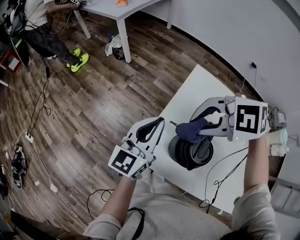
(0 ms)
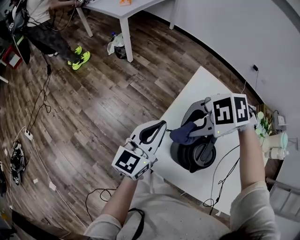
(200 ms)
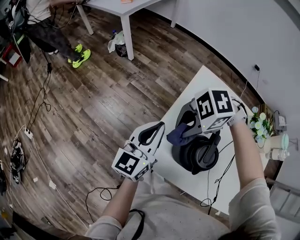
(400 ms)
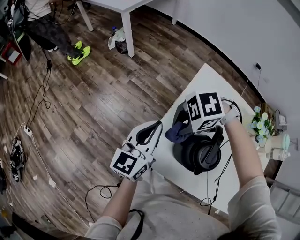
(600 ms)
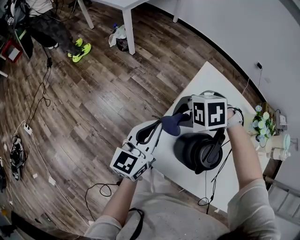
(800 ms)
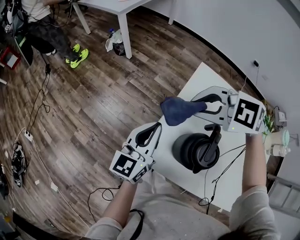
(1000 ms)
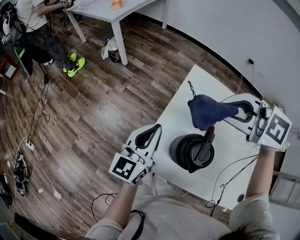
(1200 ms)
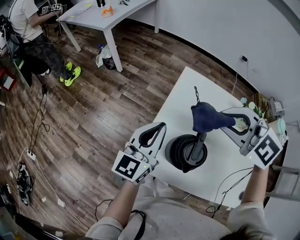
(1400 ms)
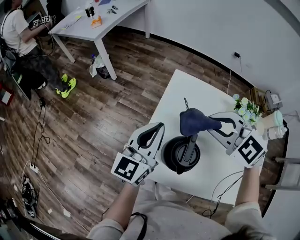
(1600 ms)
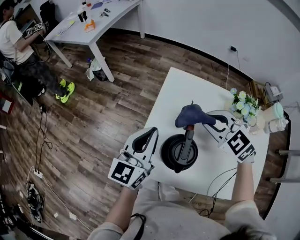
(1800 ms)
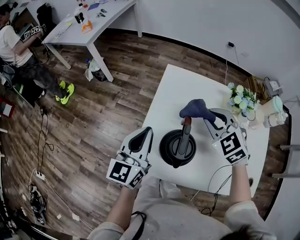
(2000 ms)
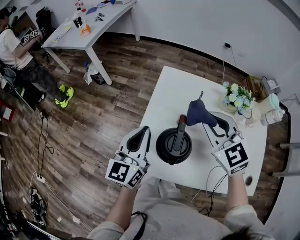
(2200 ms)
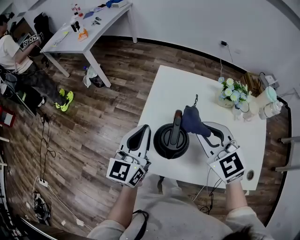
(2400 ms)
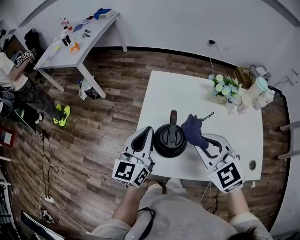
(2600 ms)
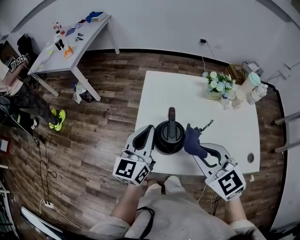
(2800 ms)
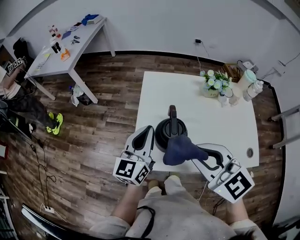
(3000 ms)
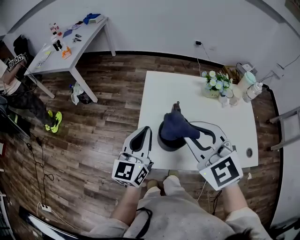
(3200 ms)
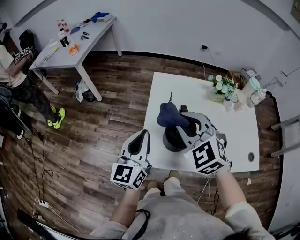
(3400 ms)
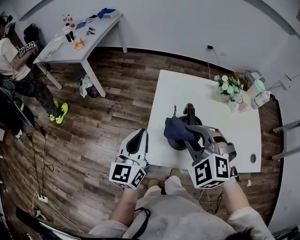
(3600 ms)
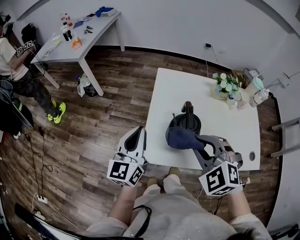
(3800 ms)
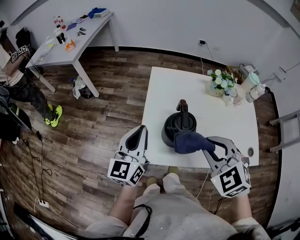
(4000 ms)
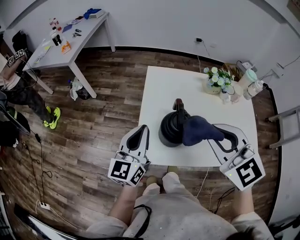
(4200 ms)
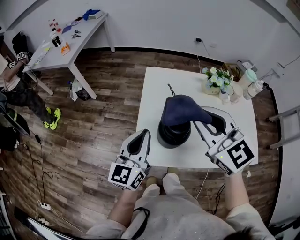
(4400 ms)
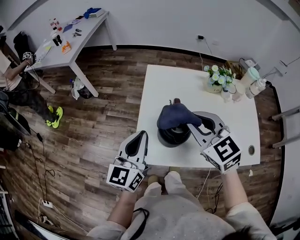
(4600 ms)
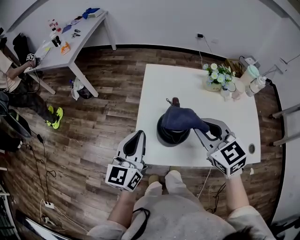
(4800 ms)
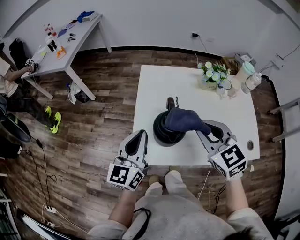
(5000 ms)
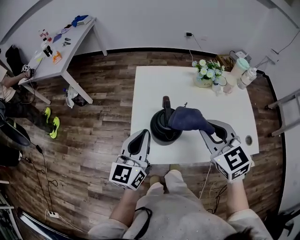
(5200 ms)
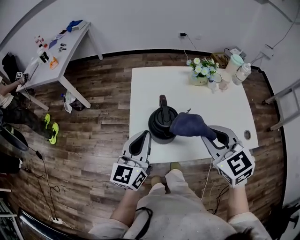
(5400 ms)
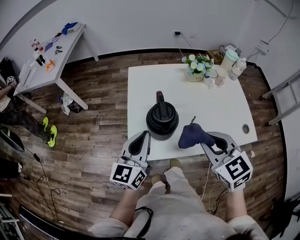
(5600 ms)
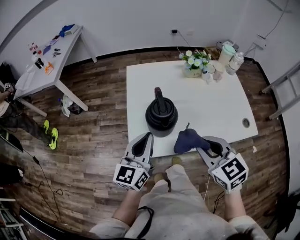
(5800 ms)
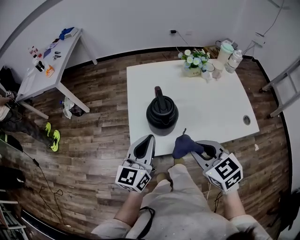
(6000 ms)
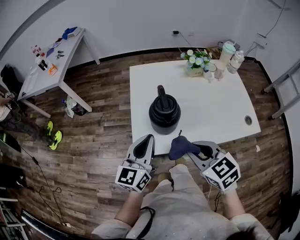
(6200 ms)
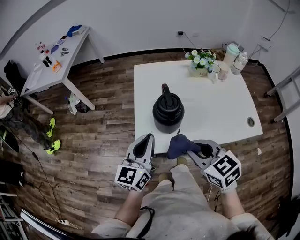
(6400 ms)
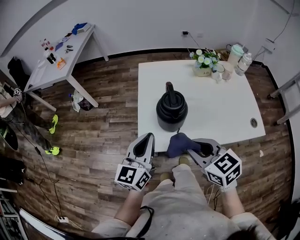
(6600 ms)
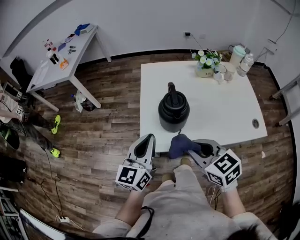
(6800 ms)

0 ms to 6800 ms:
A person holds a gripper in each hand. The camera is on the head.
0 ms to 1400 ms: The right gripper travels downward and back again, some 15 cm each way, and turns by approximately 40 degrees.
1400 ms to 2800 ms: The left gripper changes place by some 5 cm. Meanwhile the right gripper goes about 15 cm backward, and changes its angle by roughly 40 degrees.
2800 ms to 4000 ms: The left gripper goes approximately 10 cm to the left; the right gripper travels forward and back again, approximately 10 cm each way, and turns by approximately 20 degrees.
4000 ms to 5400 ms: The grippers both shift to the right by approximately 5 cm. The right gripper reaches some 10 cm upward, then returns, and rotates some 30 degrees.
5400 ms to 6800 ms: The left gripper travels backward by some 5 cm. The right gripper travels backward, to the left and downward by roughly 15 cm.

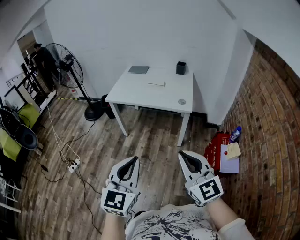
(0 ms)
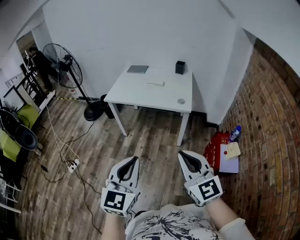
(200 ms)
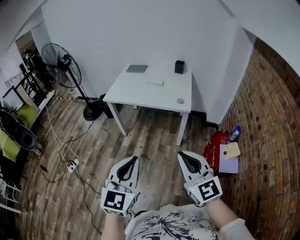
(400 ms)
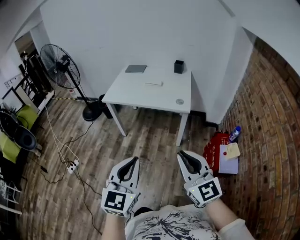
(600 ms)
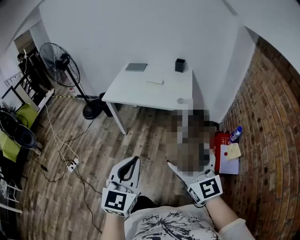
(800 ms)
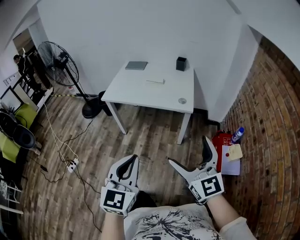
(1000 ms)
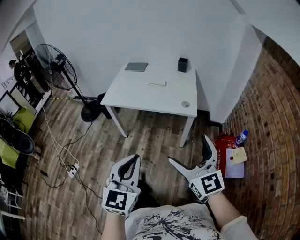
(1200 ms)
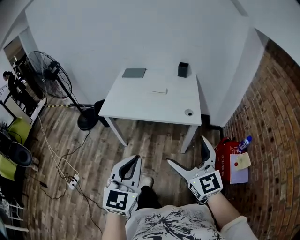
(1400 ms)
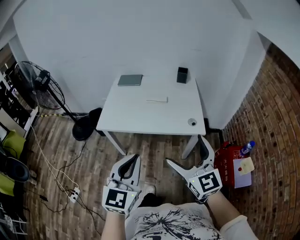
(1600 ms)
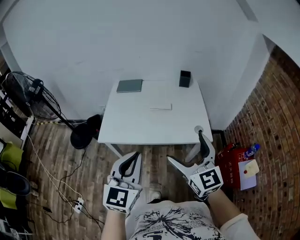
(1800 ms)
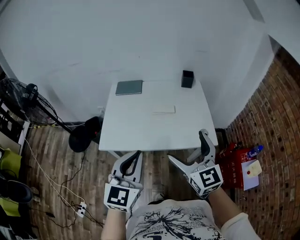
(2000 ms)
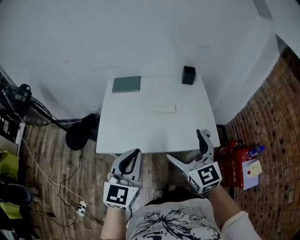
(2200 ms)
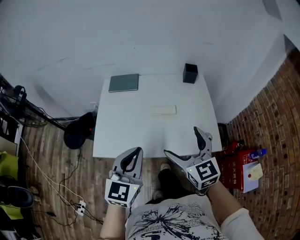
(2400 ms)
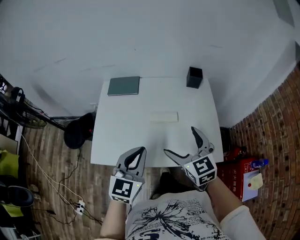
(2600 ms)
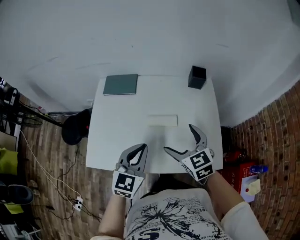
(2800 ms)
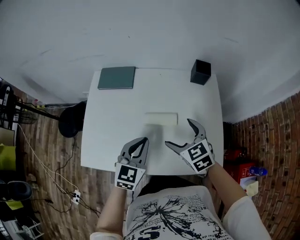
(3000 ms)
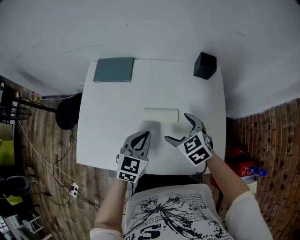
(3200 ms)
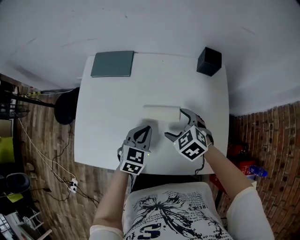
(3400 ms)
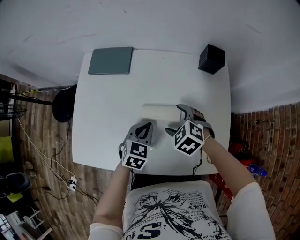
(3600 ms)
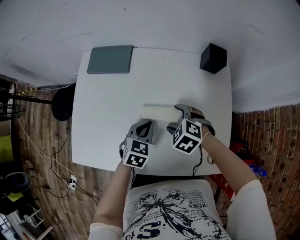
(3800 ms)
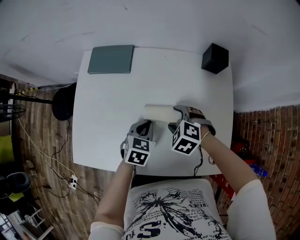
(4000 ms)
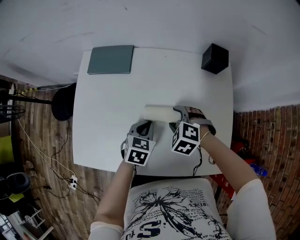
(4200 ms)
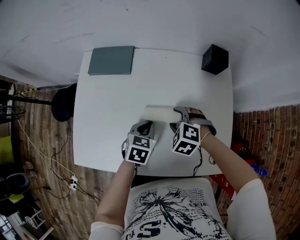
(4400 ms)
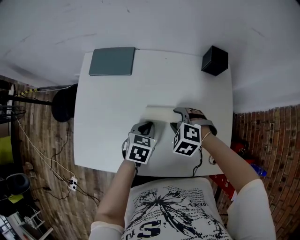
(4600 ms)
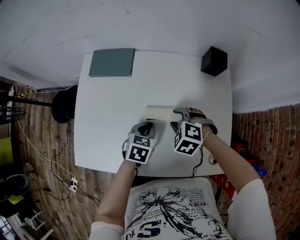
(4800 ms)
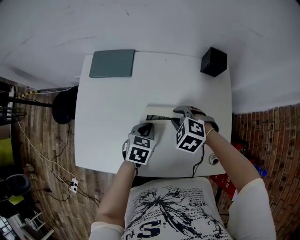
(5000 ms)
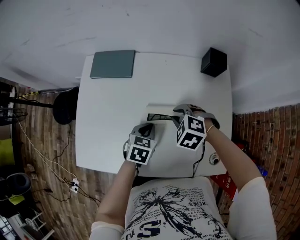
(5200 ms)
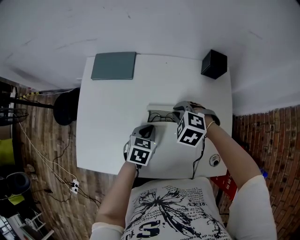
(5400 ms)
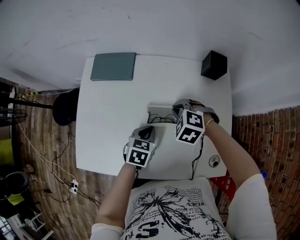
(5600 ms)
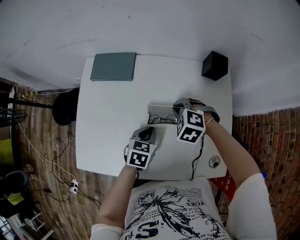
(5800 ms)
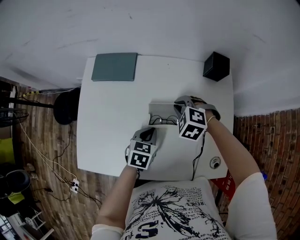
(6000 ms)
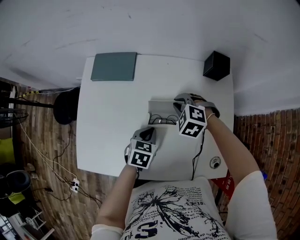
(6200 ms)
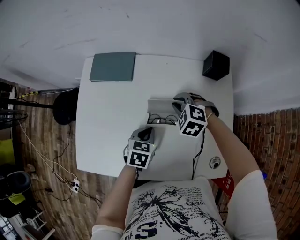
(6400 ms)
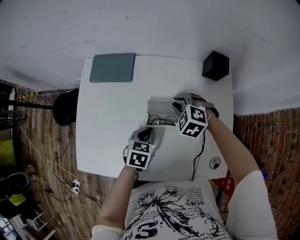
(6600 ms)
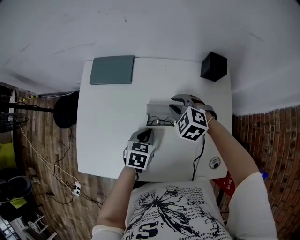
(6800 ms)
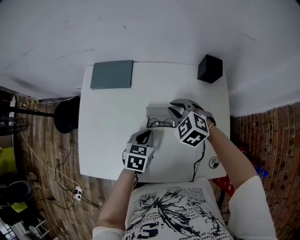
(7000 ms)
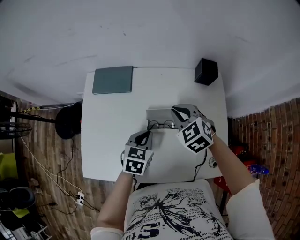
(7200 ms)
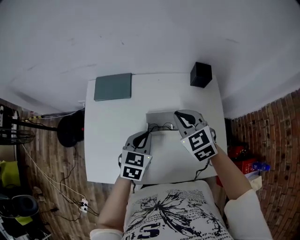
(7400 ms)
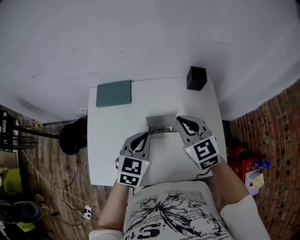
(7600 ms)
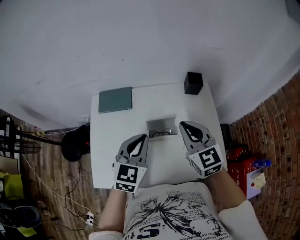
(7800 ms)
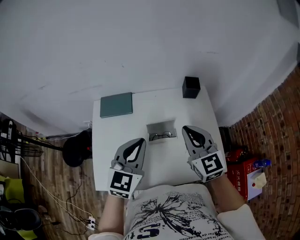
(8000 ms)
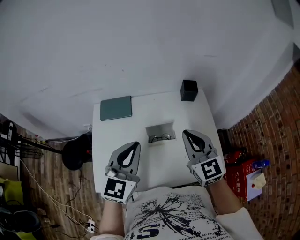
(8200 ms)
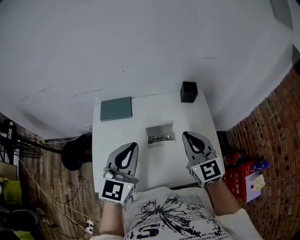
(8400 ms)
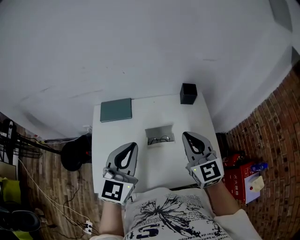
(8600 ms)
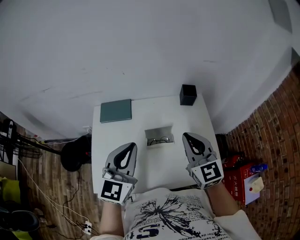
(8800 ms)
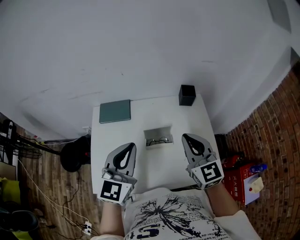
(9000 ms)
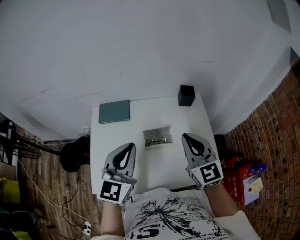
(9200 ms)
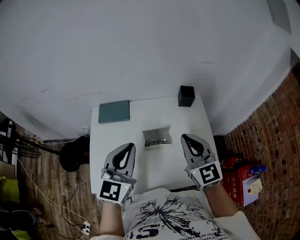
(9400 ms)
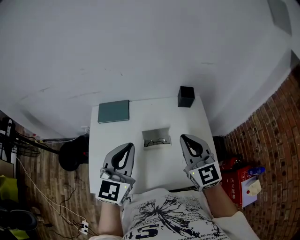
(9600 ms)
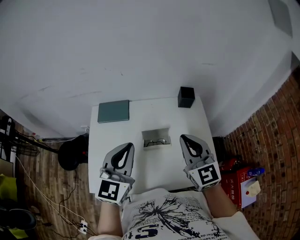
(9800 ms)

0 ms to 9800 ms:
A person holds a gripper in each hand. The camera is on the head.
0 ms to 1400 ms: Both grippers travel together forward, roughly 25 cm. The right gripper opens its fingers.
1400 ms to 2800 ms: Both grippers are carried forward, roughly 50 cm. The right gripper rotates about 30 degrees.
2800 ms to 4200 ms: Both grippers travel together downward and forward, some 25 cm. The left gripper turns by some 30 degrees. The right gripper tilts its fingers about 40 degrees downward, and closes its fingers.
4200 ms to 5600 ms: The right gripper is displaced forward by some 5 cm, and closes.
5600 ms to 7000 ms: The right gripper ends up about 5 cm from where it was.
7000 ms to 8400 ms: The right gripper is displaced upward and backward by about 25 cm, and points its fingers some 40 degrees further upward, while the left gripper heads upward, covering about 30 cm, and tilts its fingers about 40 degrees upward.
8400 ms to 9800 ms: The grippers move only a little.

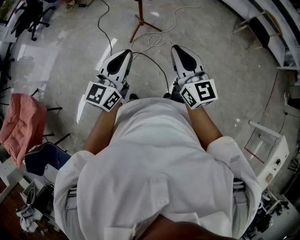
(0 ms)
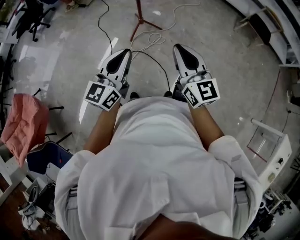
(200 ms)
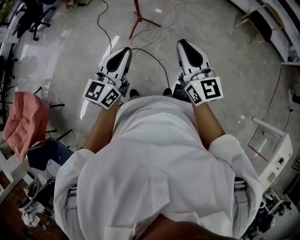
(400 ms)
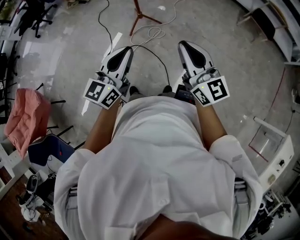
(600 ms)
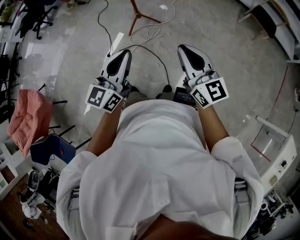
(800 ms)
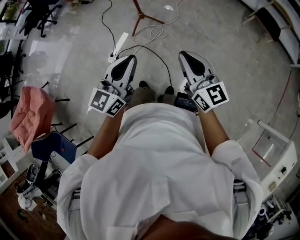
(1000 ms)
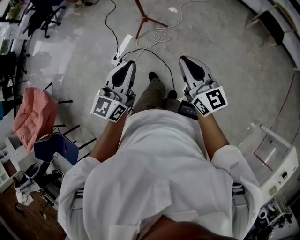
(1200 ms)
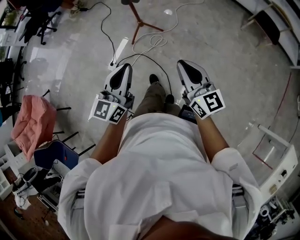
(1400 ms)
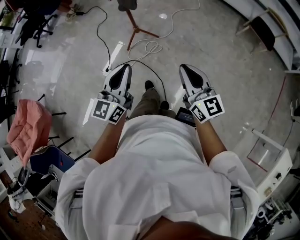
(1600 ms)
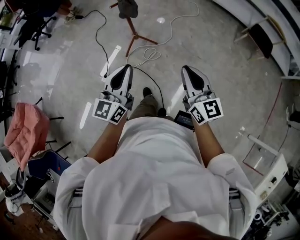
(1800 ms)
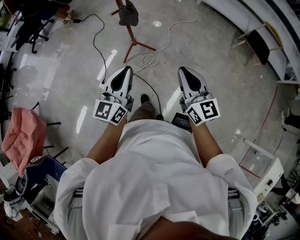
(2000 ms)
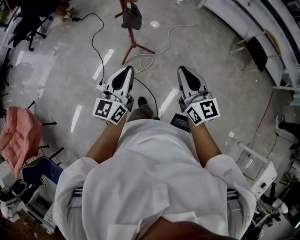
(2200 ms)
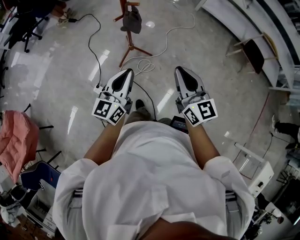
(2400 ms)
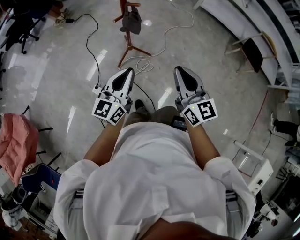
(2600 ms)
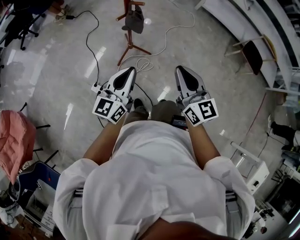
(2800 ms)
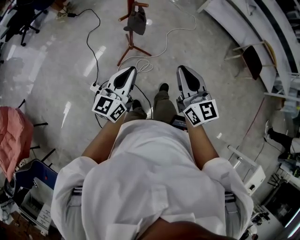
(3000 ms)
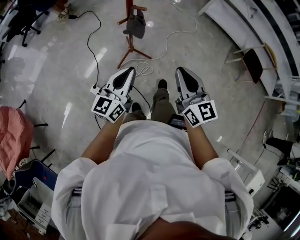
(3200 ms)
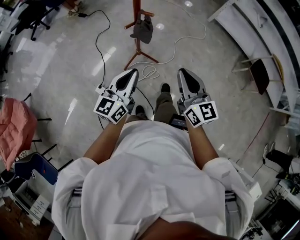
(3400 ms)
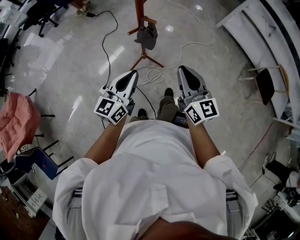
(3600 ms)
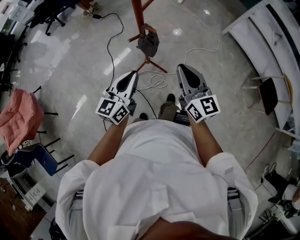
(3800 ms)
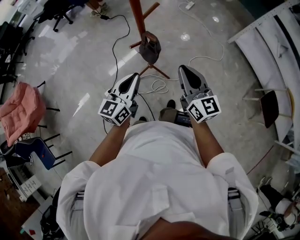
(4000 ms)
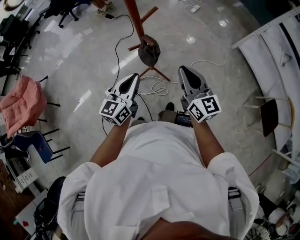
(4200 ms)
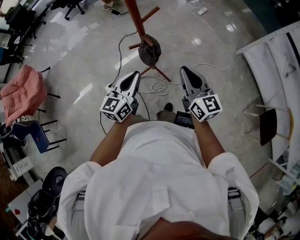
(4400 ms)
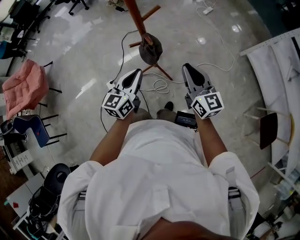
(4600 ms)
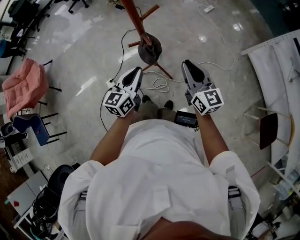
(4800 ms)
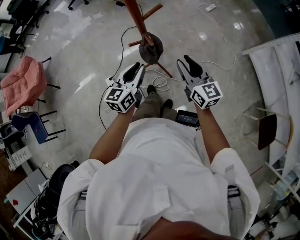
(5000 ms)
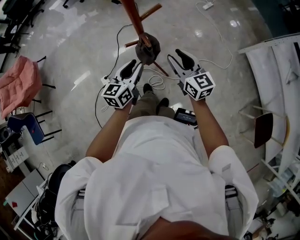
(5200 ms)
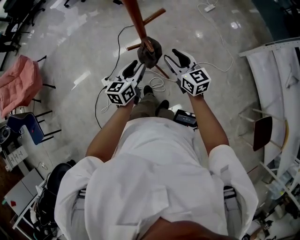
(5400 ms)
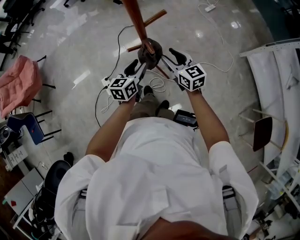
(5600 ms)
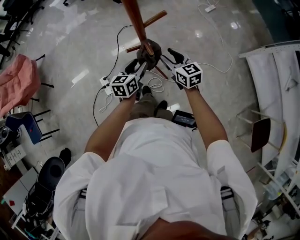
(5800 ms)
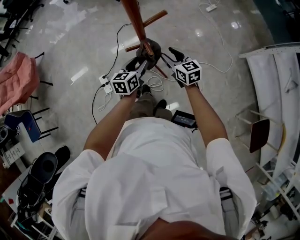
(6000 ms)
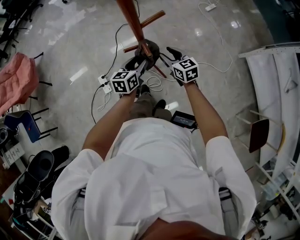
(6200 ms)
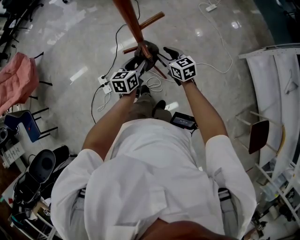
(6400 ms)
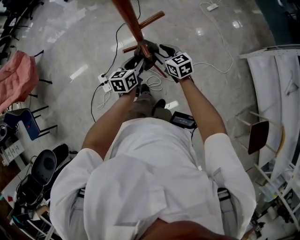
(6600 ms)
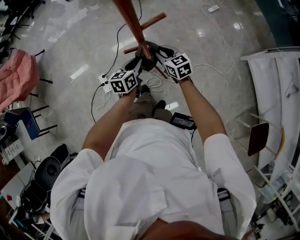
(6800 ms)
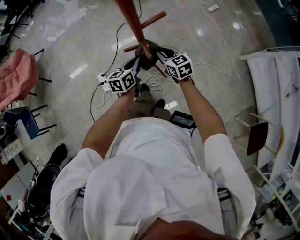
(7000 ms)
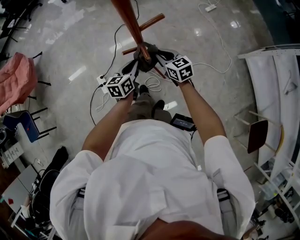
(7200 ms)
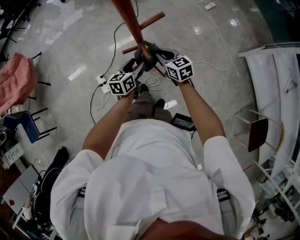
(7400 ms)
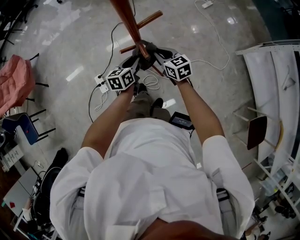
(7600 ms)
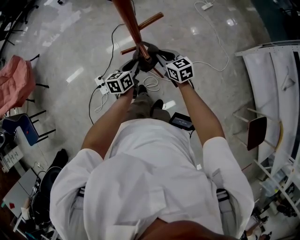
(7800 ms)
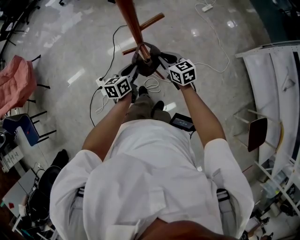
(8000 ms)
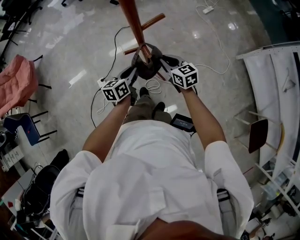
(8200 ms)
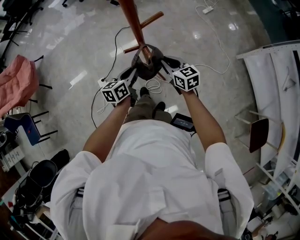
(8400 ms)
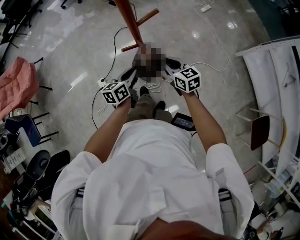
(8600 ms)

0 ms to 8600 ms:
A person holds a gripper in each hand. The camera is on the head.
0 ms to 1400 ms: The grippers both shift to the right by some 15 cm.
1400 ms to 2800 ms: The two grippers go about 25 cm forward.
2800 ms to 4400 ms: The left gripper shifts by roughly 20 cm, and turns by roughly 30 degrees. The right gripper moves approximately 25 cm, and changes its angle by about 30 degrees.
4400 ms to 5800 ms: Both grippers travel together downward and forward, approximately 20 cm. The left gripper rotates approximately 20 degrees, and opens. The right gripper swivels roughly 30 degrees, and opens.
5800 ms to 7200 ms: The right gripper ends up roughly 5 cm from where it was, and closes. Meanwhile the left gripper closes its fingers.
7200 ms to 8600 ms: Both grippers travel together backward, roughly 5 cm. The left gripper opens and closes again.
